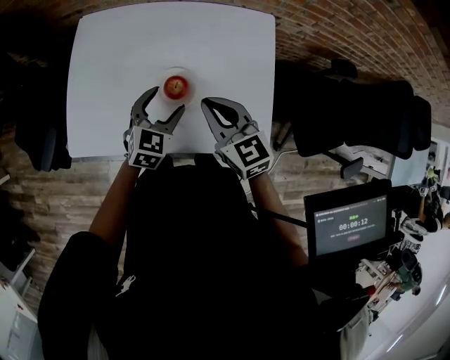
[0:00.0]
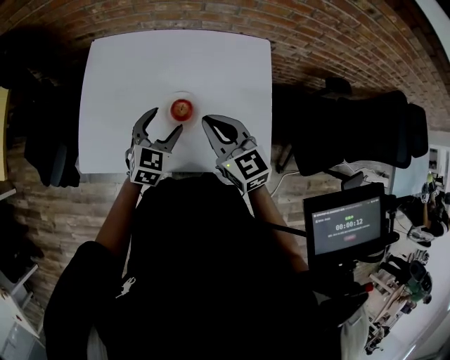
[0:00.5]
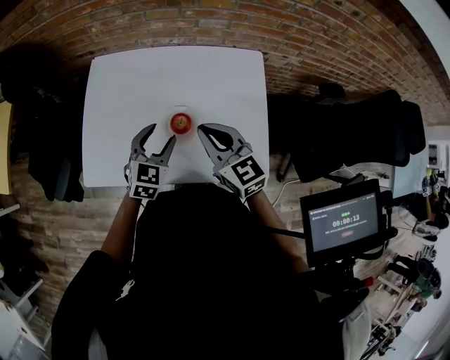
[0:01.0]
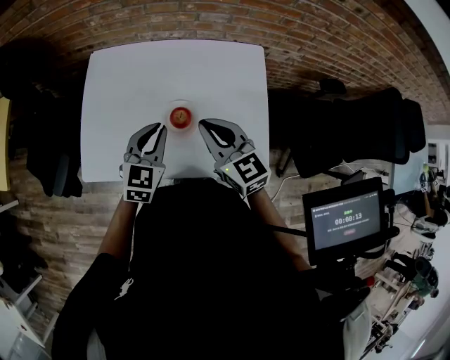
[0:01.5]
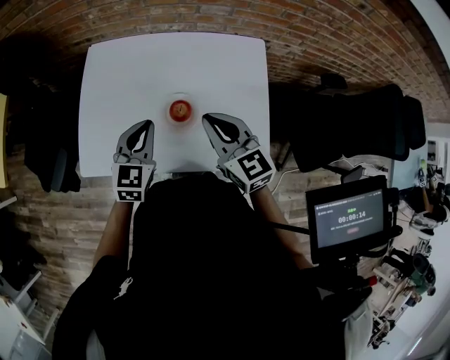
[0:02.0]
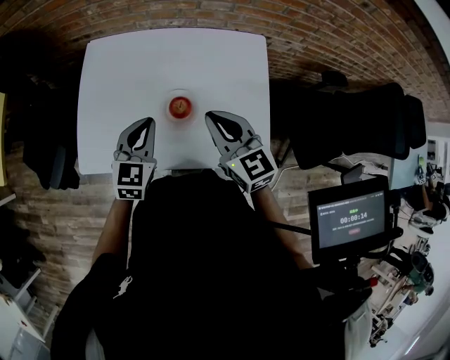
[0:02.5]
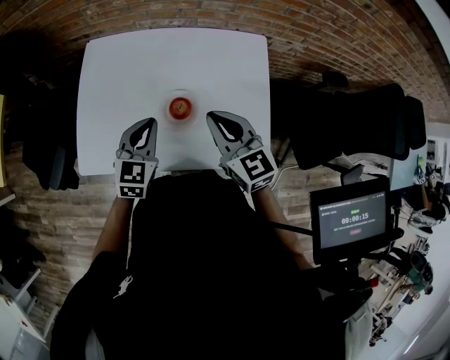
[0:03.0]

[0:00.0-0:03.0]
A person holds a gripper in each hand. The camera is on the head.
0:00.0 to 0:01.5: The left gripper travels upward by approximately 10 cm, and closes its fingers.
0:01.5 to 0:03.0: The grippers move only a little.

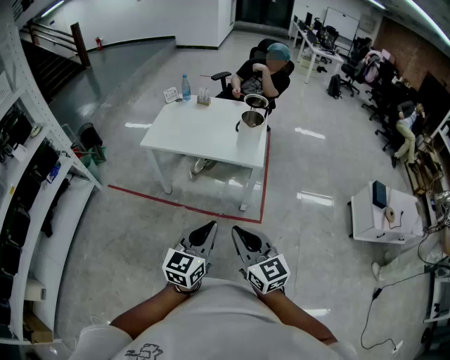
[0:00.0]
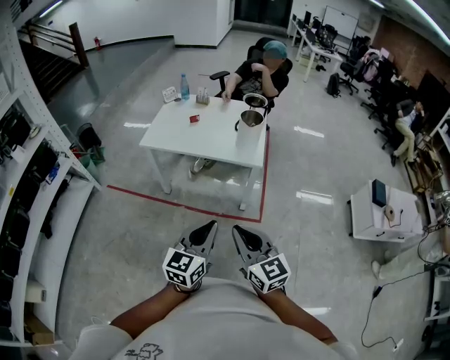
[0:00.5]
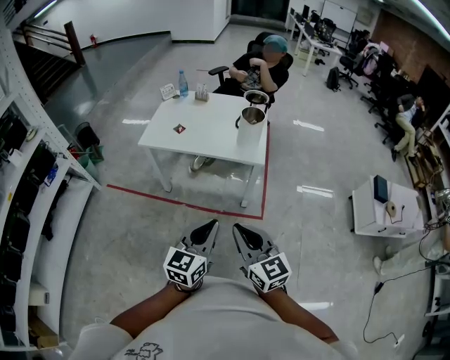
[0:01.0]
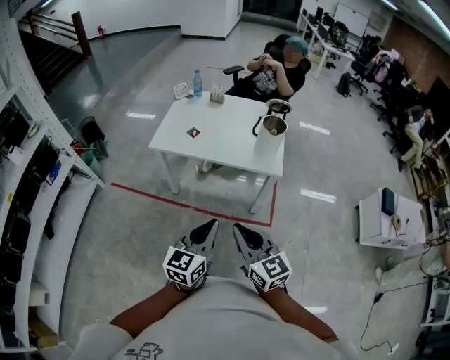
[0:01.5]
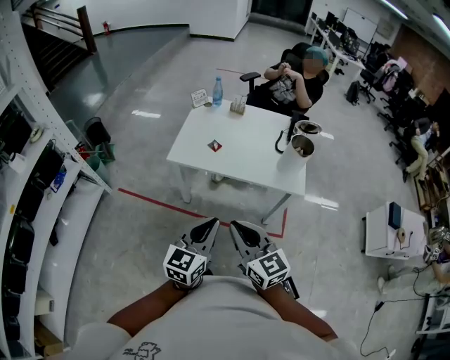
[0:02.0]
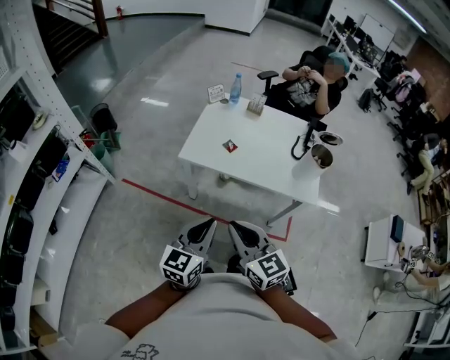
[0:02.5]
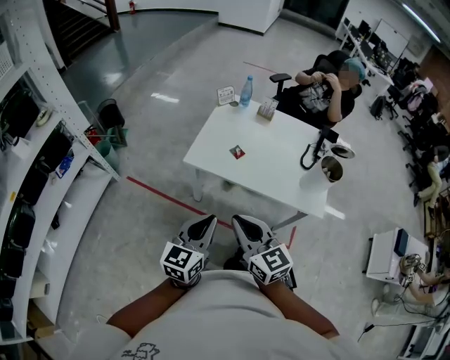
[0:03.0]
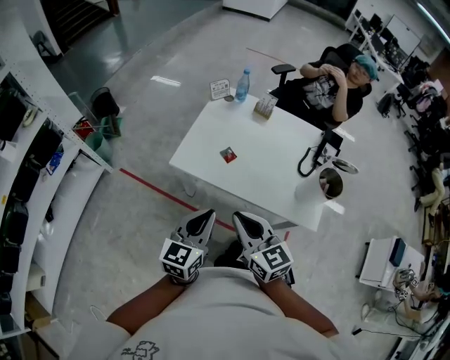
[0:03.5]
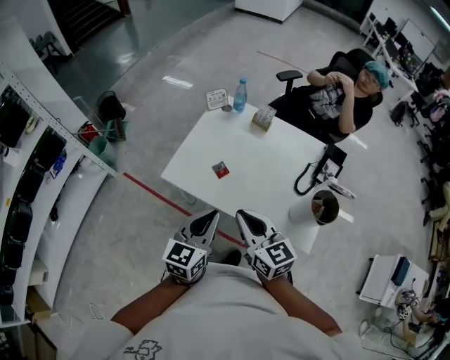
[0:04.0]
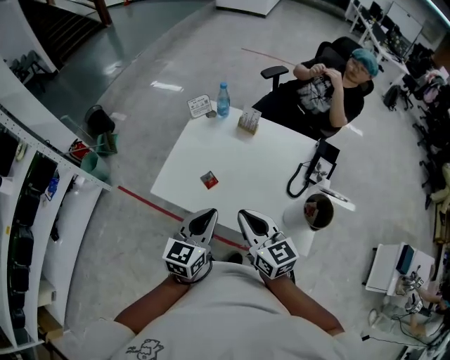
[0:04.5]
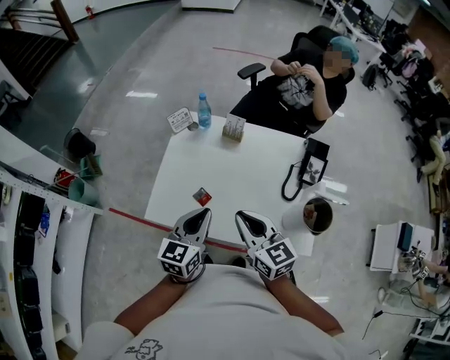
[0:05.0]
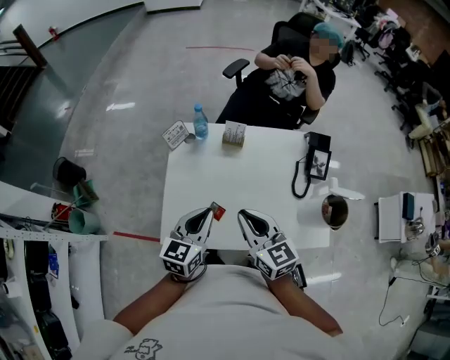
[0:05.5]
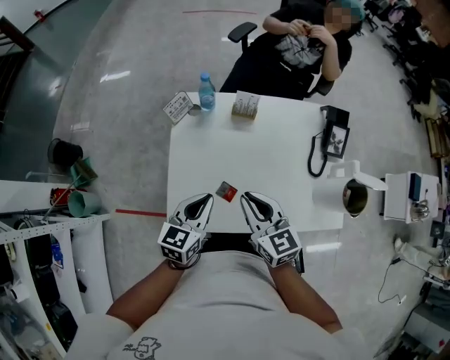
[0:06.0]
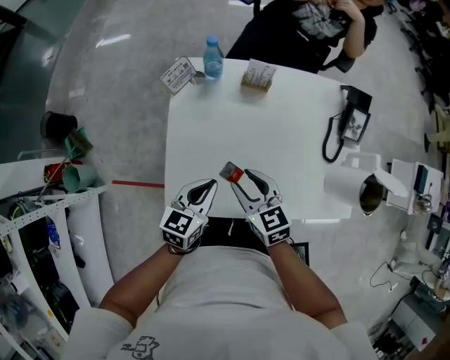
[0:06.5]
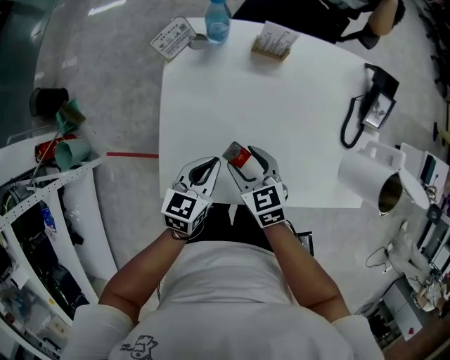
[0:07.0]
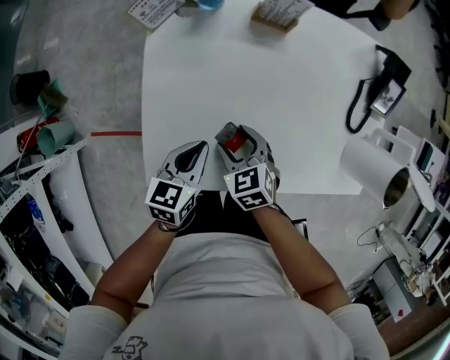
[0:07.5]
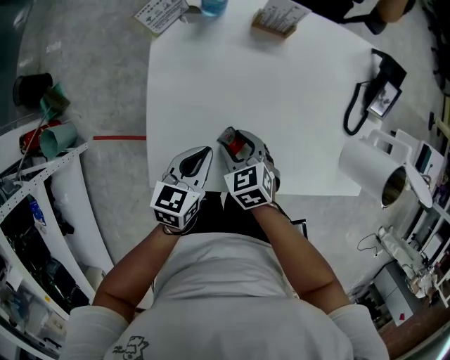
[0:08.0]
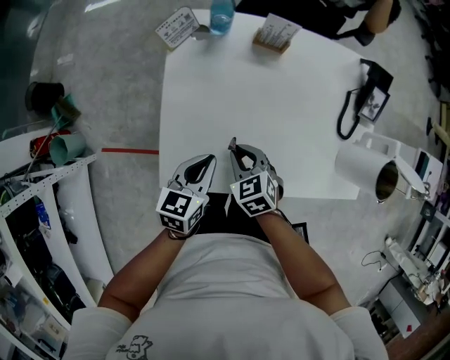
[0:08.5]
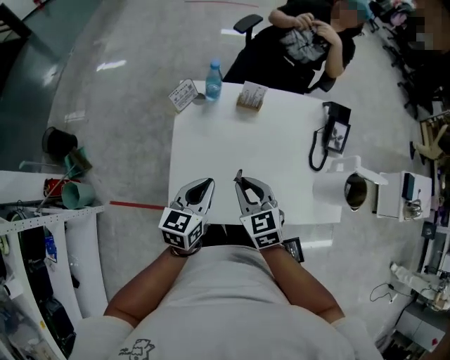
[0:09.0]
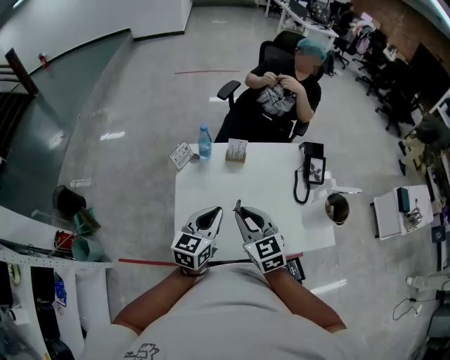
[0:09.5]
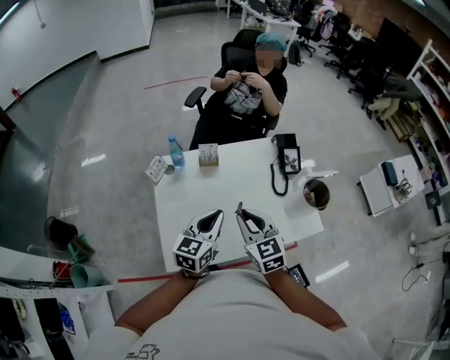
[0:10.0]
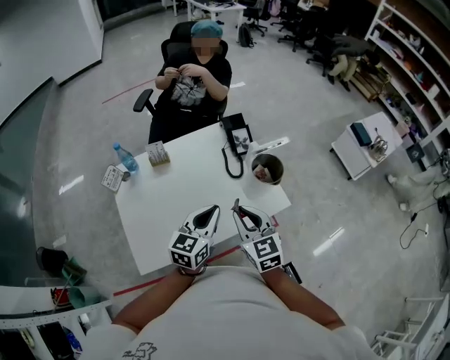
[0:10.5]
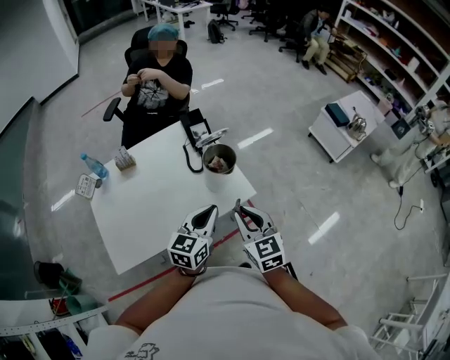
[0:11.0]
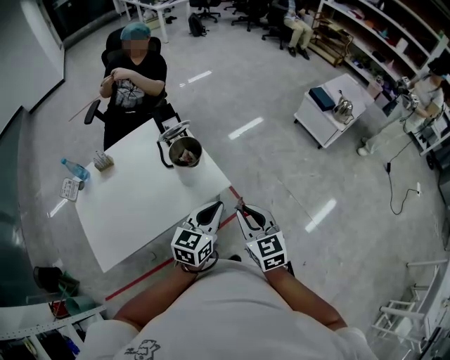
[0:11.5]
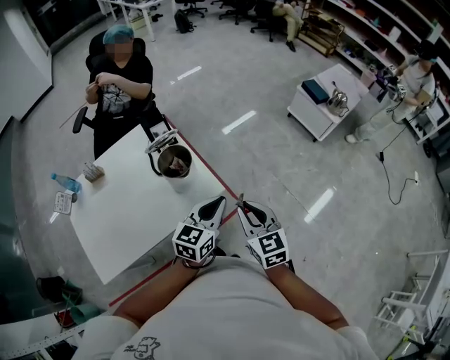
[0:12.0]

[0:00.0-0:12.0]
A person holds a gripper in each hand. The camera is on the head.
0:00.0 to 0:02.0: The two grippers go roughly 30 cm to the left and forward.
0:02.0 to 0:04.0: Both grippers move forward, about 30 cm.
0:04.0 to 0:06.0: The left gripper changes place by roughly 25 cm, and turns by roughly 30 degrees, while the right gripper changes place by some 25 cm, and turns by some 30 degrees.
0:06.0 to 0:08.0: The left gripper is displaced downward by roughly 15 cm. Meanwhile the right gripper moves downward, about 25 cm, points its fingers about 40 degrees further downward, and opens up.
0:08.0 to 0:10.0: The right gripper is displaced upward by roughly 30 cm, points its fingers roughly 40 degrees further upward, and closes up. The left gripper moves upward and to the right, about 25 cm, and changes its angle by about 30 degrees.
0:10.0 to 0:12.0: Both grippers are carried some 50 cm. The left gripper changes its angle by roughly 30 degrees. The right gripper turns by some 30 degrees.

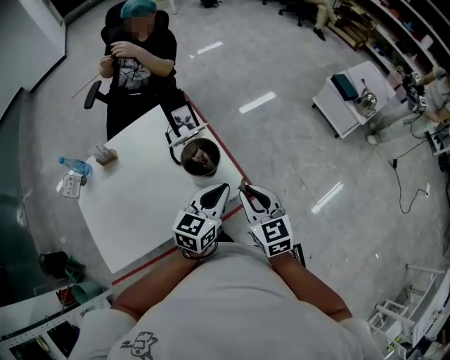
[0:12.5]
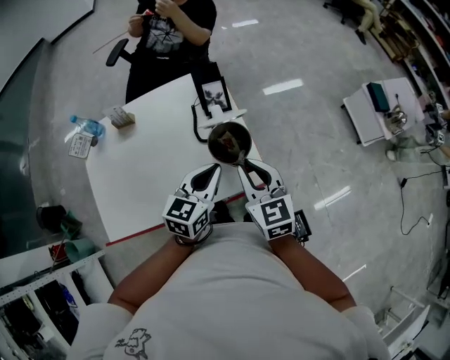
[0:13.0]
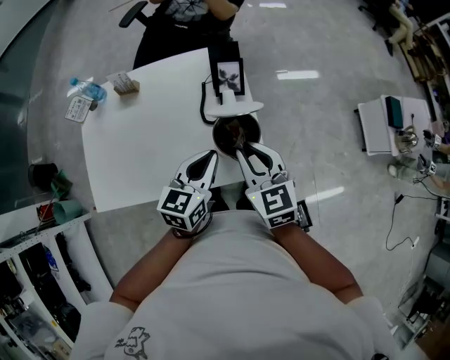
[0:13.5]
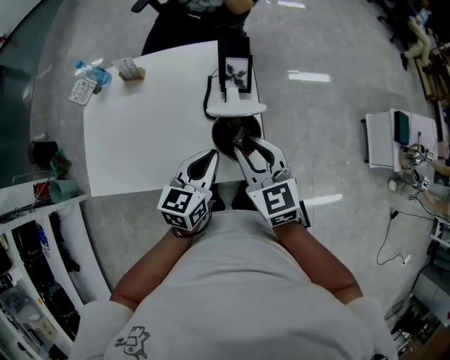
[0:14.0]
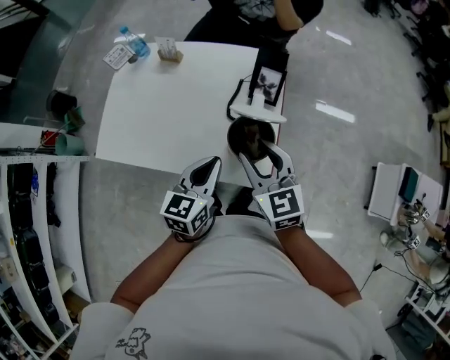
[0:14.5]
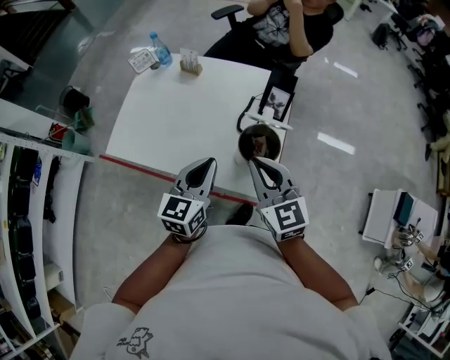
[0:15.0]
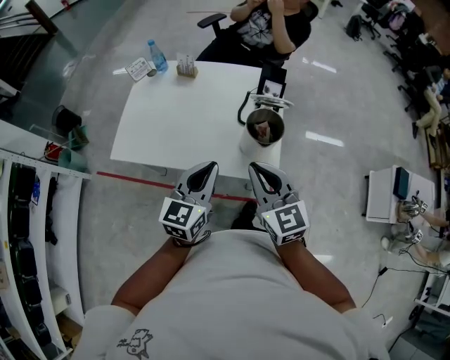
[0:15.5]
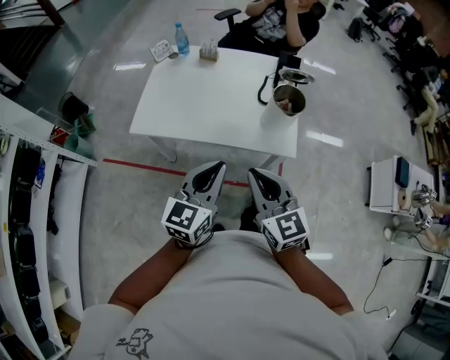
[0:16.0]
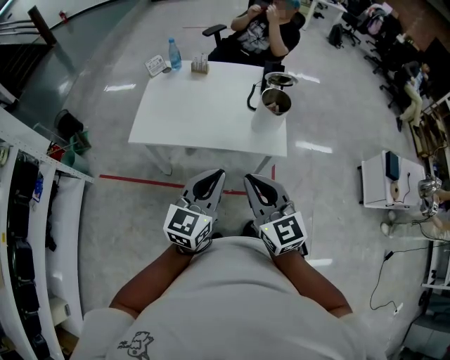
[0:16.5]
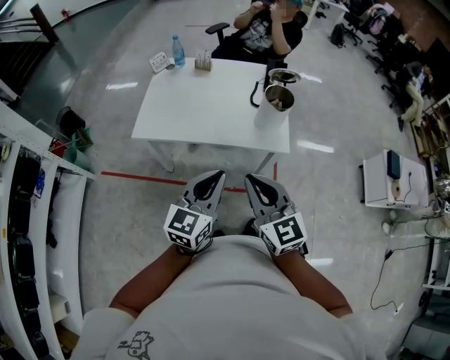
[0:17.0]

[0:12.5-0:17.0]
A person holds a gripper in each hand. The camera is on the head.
0:12.5 to 0:14.5: The right gripper moves some 15 cm, swivels approximately 40 degrees, and opens. Meanwhile the left gripper ends up about 10 cm from where it was, and changes its angle by about 50 degrees.
0:14.5 to 0:17.0: Both grippers move backward and to the left, about 35 cm. The right gripper closes. Meanwhile the left gripper turns by some 20 degrees.

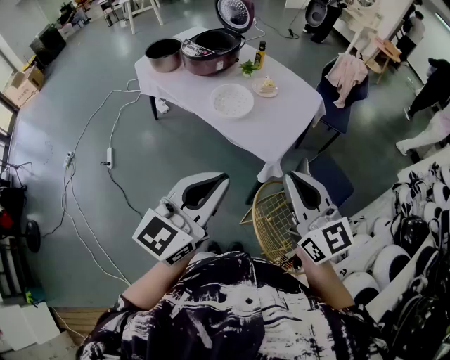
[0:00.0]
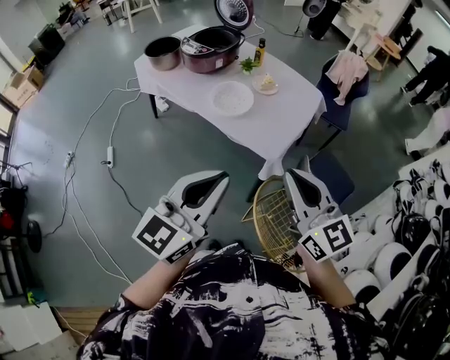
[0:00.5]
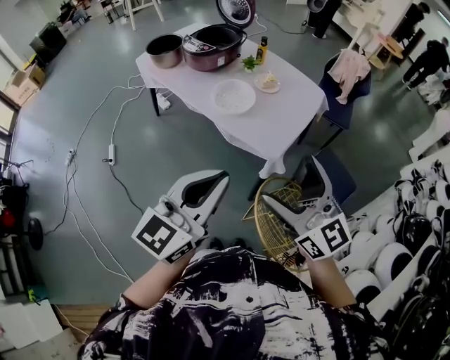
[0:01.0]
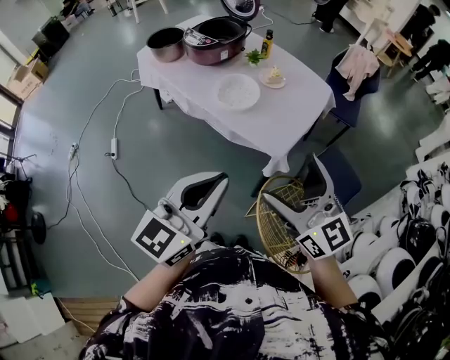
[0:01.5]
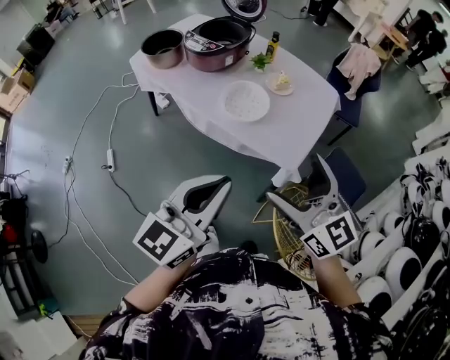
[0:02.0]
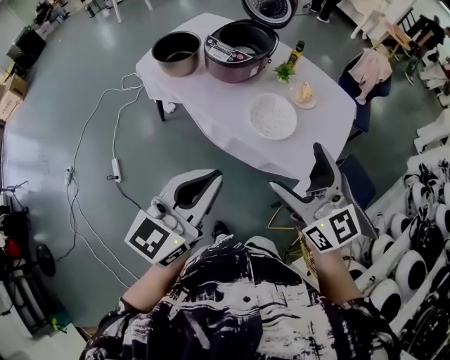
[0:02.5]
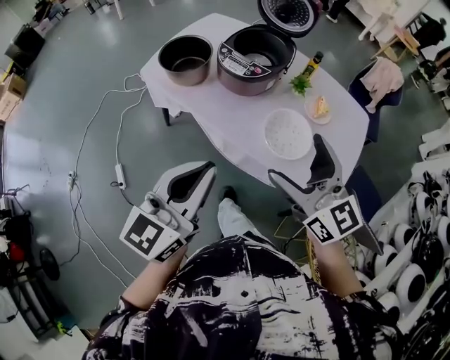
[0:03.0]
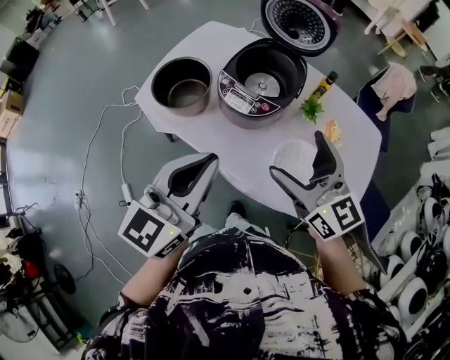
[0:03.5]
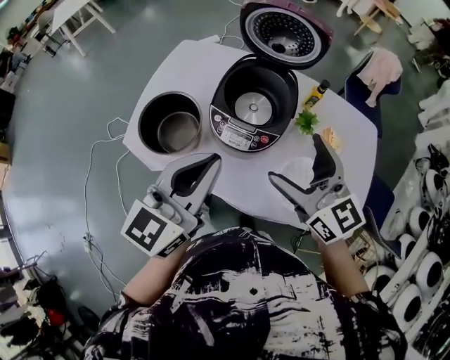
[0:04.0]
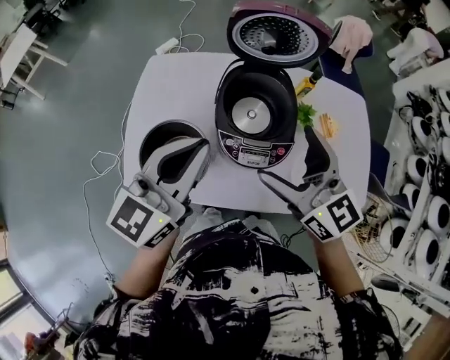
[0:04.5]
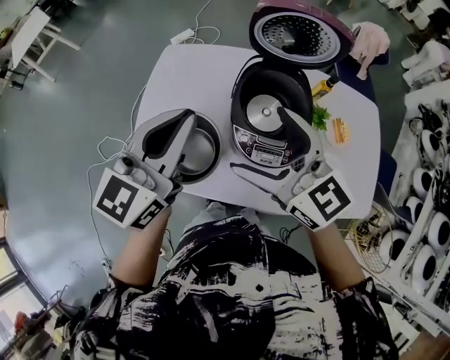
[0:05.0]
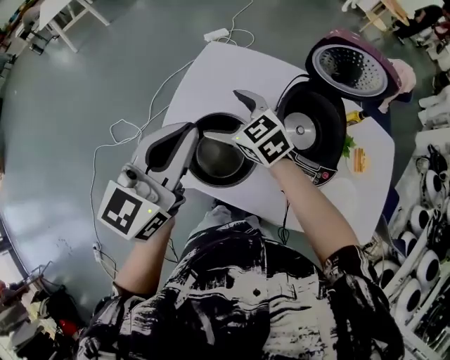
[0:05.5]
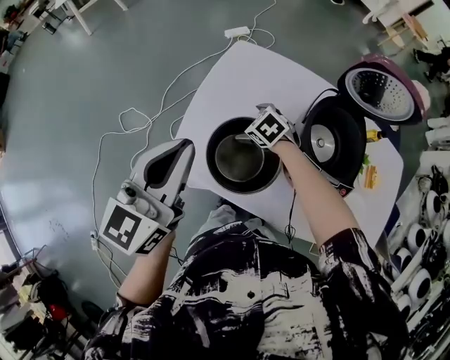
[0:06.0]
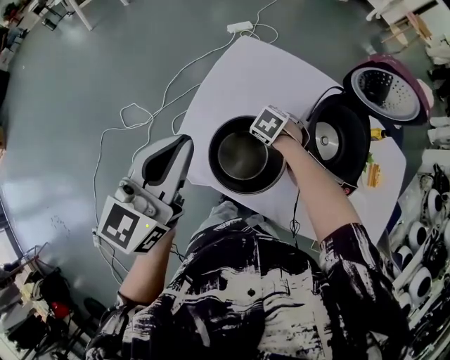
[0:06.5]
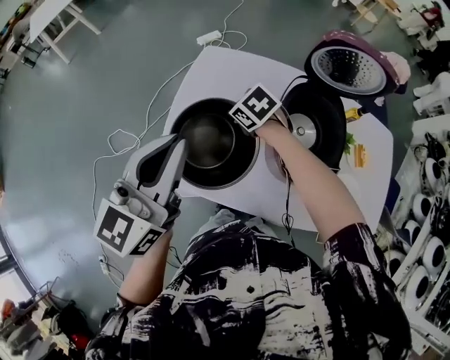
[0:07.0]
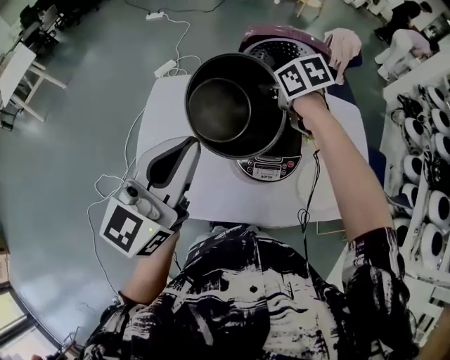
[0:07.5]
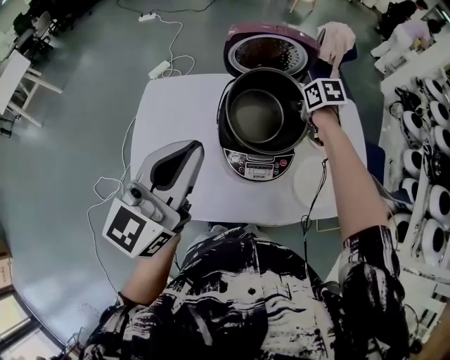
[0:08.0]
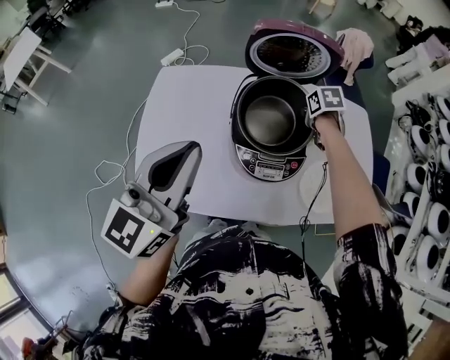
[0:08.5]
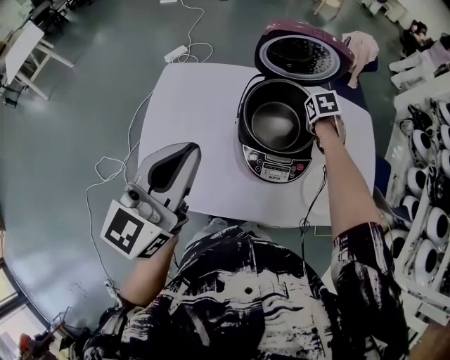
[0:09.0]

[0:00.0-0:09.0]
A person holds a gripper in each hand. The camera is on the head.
0:00.0 to 0:02.0: Both grippers move forward and to the left, approximately 15 cm. The right gripper opens its fingers.
0:02.0 to 0:04.5: The two grippers travel together, about 70 cm. The right gripper swivels roughly 30 degrees. The left gripper changes its angle by some 30 degrees.
0:04.5 to 0:07.0: The right gripper changes place by some 40 cm, angles its fingers downward, by roughly 60 degrees, and closes its fingers. Meanwhile the left gripper moves about 20 cm.
0:07.0 to 0:09.0: The left gripper changes place by approximately 10 cm; the right gripper goes upward and returns, some 15 cm each way, and rotates roughly 50 degrees.
